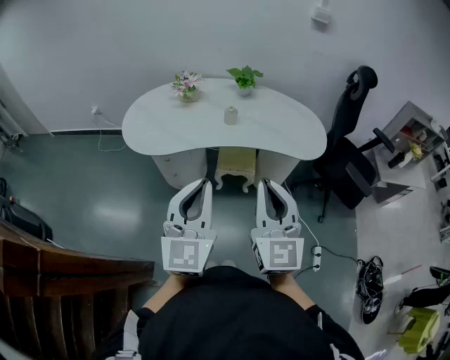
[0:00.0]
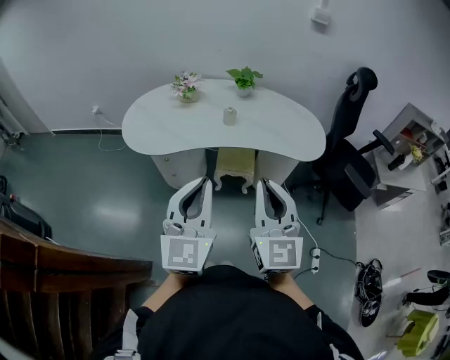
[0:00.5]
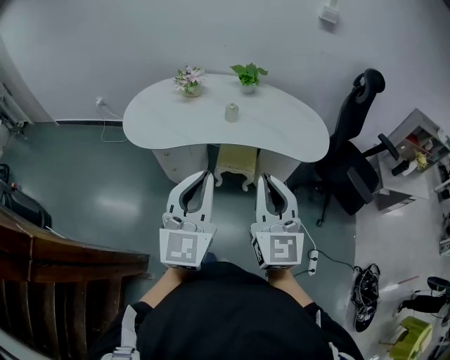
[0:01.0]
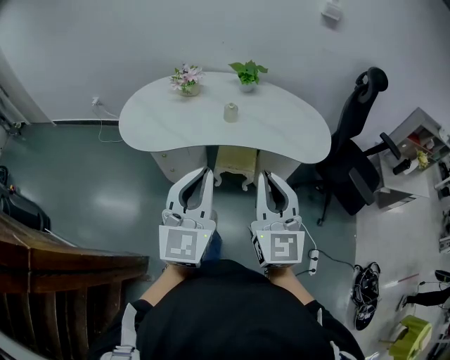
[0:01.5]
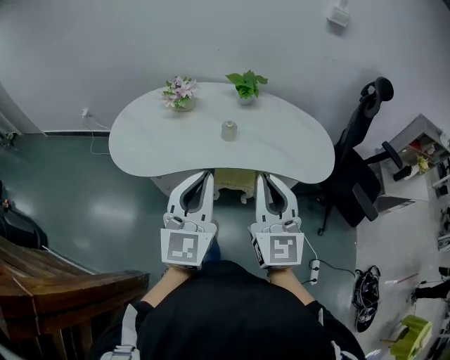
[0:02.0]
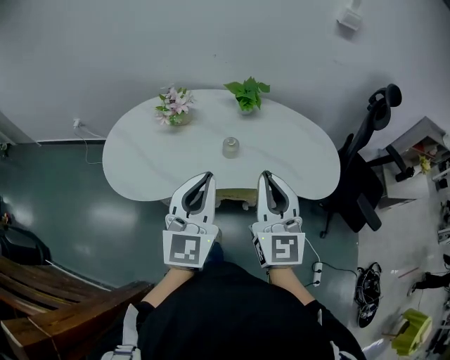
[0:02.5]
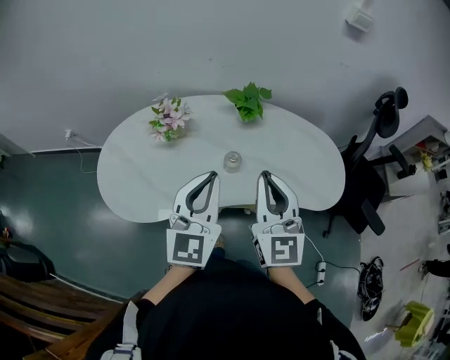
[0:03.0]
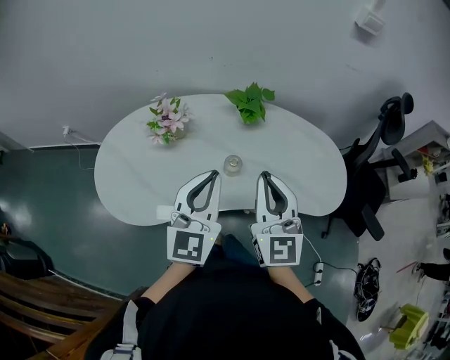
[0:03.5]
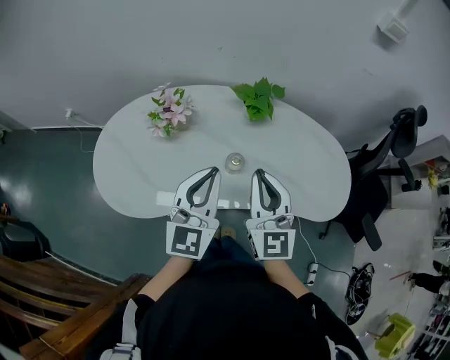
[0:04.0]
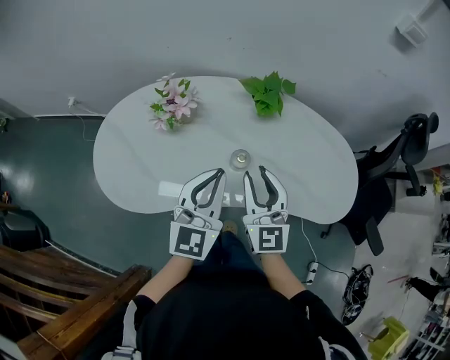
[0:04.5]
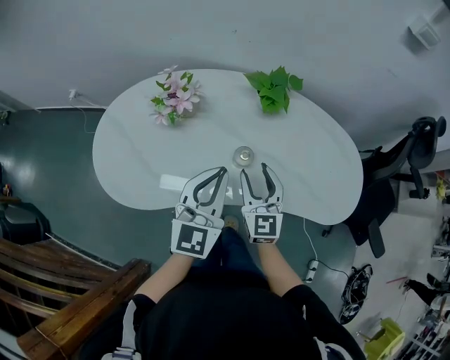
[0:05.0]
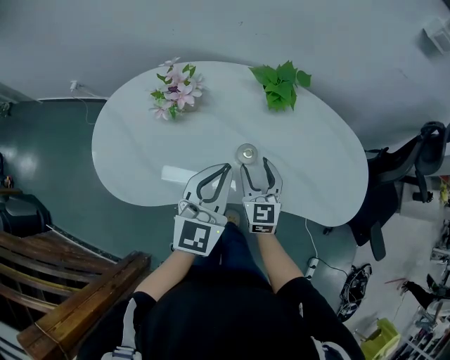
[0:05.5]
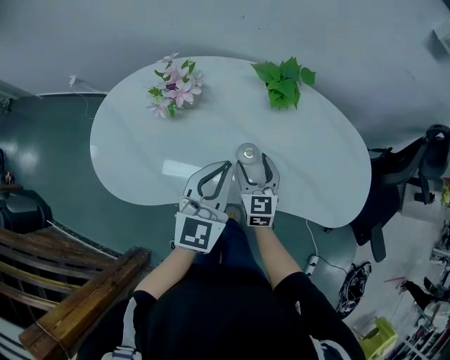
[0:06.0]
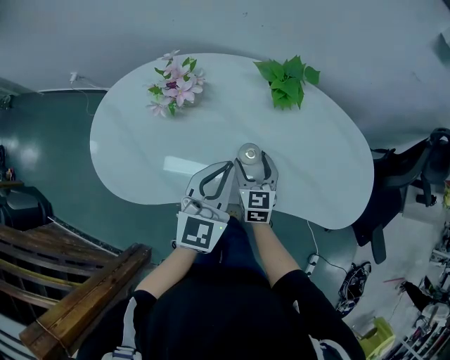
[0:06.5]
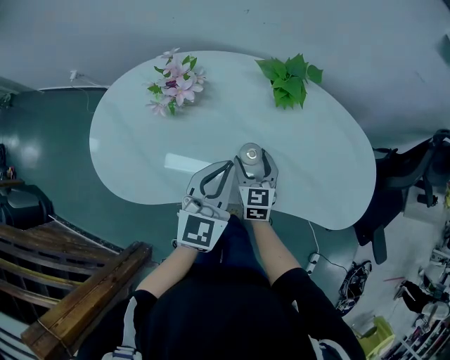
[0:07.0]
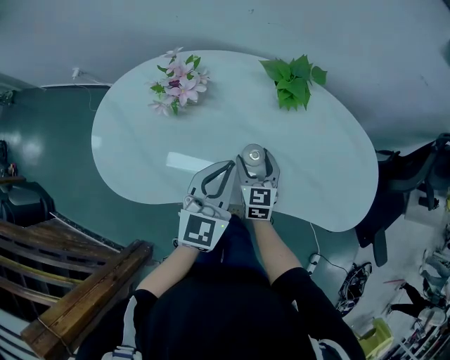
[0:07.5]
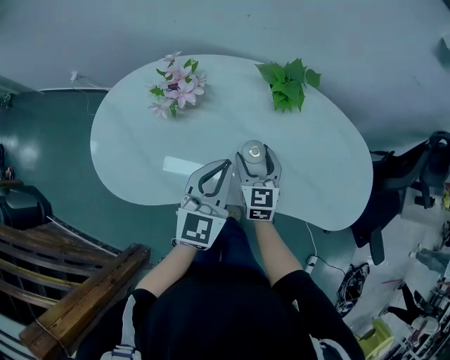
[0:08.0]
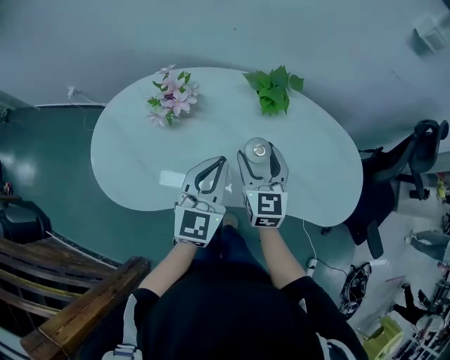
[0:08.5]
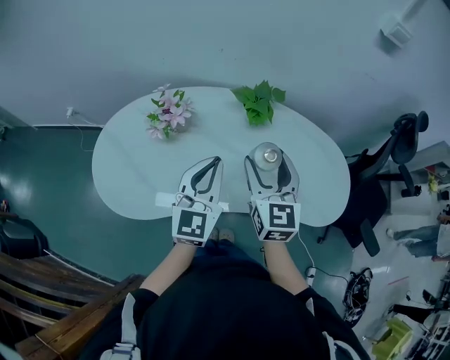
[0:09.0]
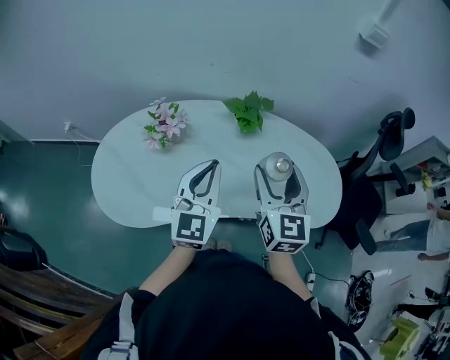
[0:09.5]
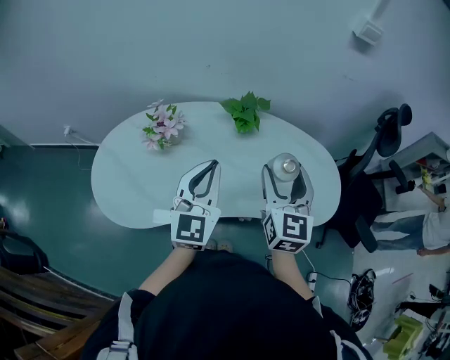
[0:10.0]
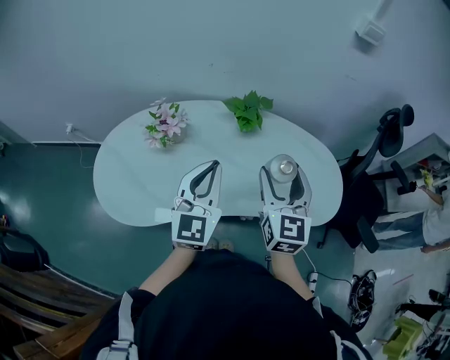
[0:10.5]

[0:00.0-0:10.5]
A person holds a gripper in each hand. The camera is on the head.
0:00.0 to 0:02.0: Both grippers travel together forward, roughly 15 cm.
0:02.0 to 0:04.0: The grippers both shift forward by approximately 25 cm.
0:04.0 to 0:06.5: The right gripper is displaced downward by approximately 25 cm, rotates roughly 30 degrees, and opens; the left gripper goes about 10 cm downward.
0:06.5 to 0:08.5: The right gripper moves upward, about 15 cm.
0:08.5 to 0:10.5: The right gripper moves upward, to the right and backward, about 20 cm; the left gripper goes roughly 10 cm upward.

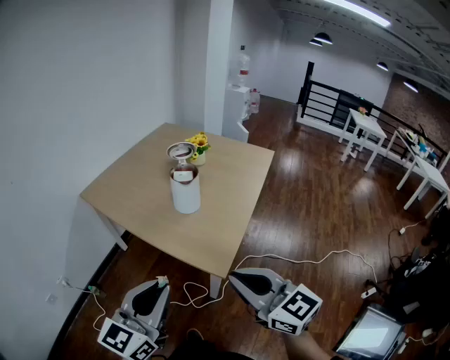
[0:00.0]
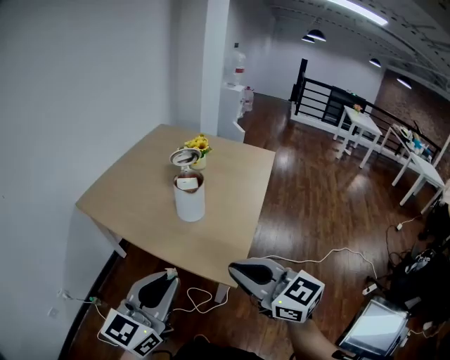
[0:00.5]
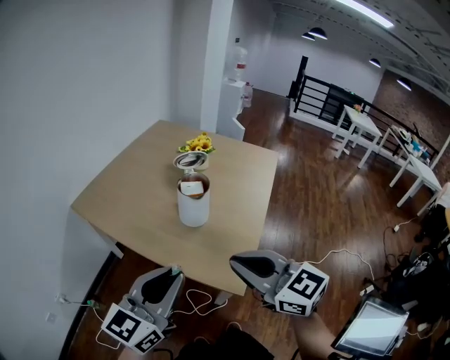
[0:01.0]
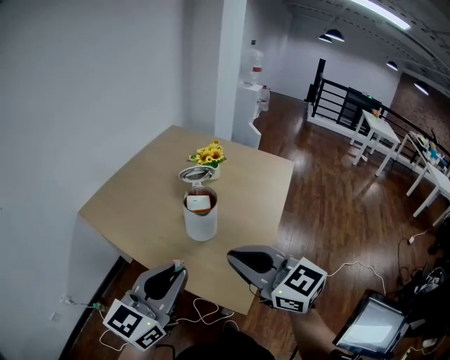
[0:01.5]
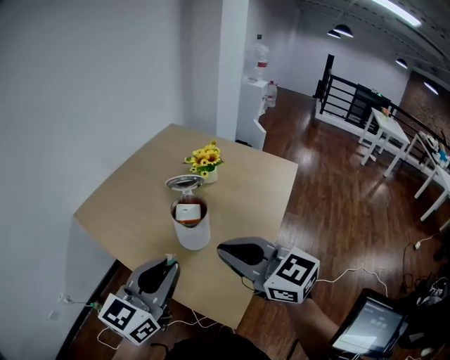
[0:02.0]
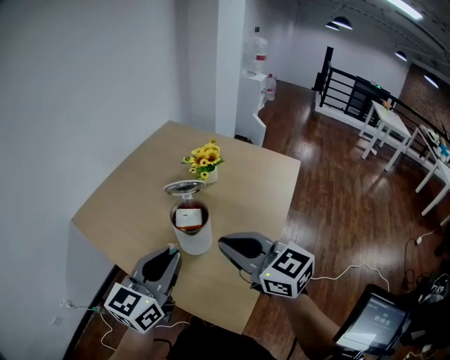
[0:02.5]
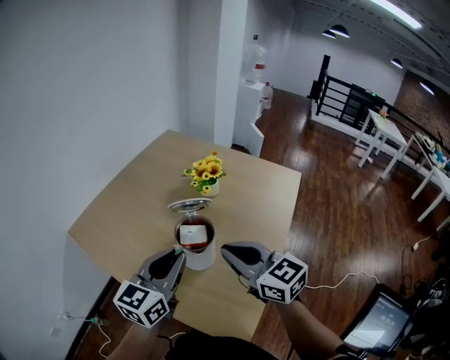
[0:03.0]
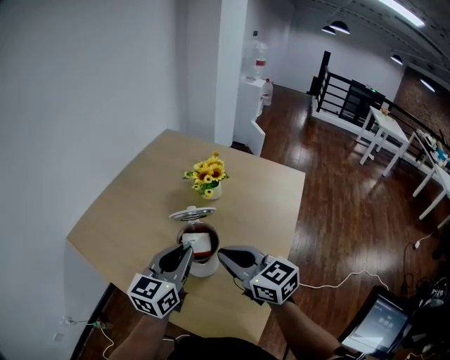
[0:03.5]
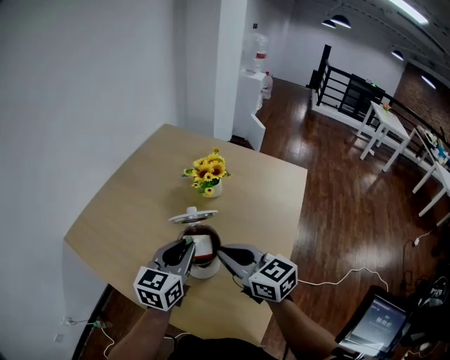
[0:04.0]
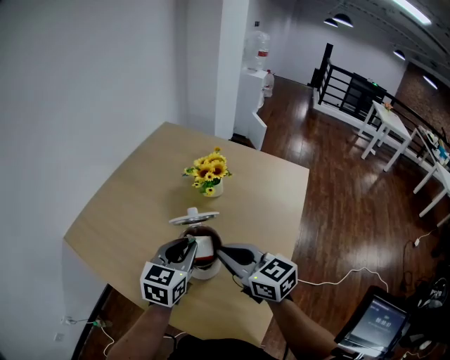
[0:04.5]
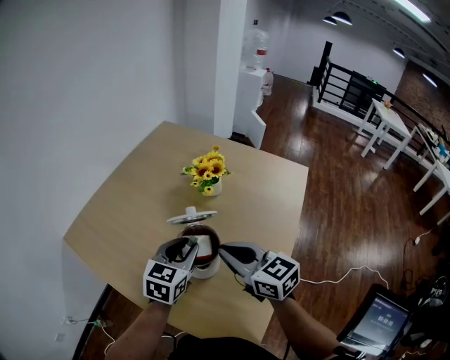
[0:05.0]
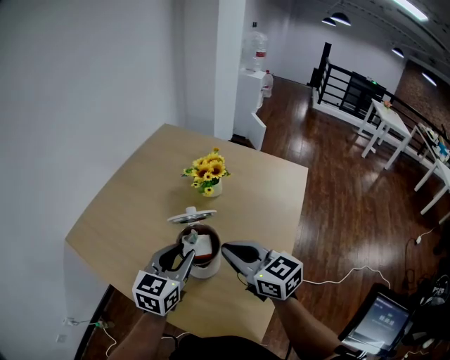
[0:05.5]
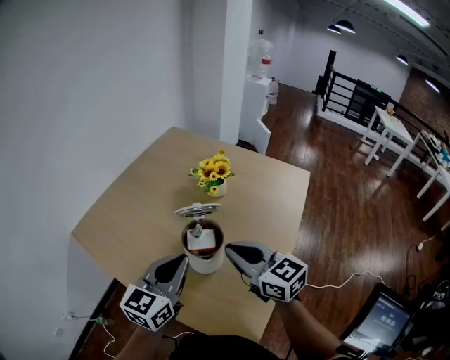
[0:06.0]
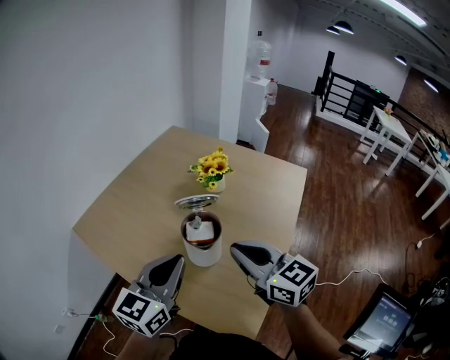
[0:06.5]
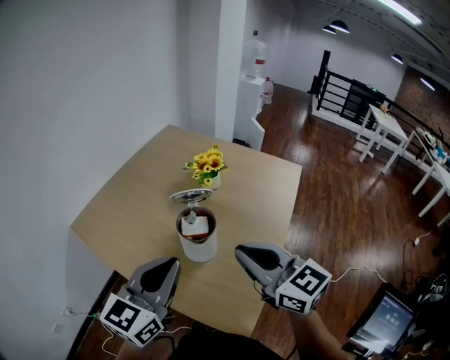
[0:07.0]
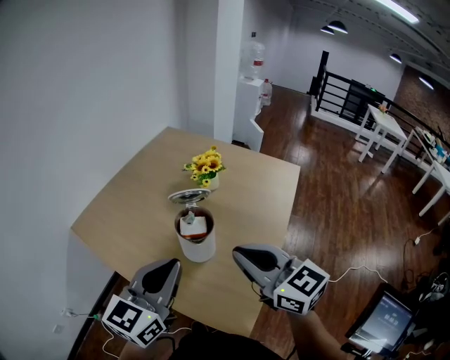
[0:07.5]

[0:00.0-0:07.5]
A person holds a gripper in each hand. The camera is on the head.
0:00.0 to 0:02.0: The two grippers go approximately 30 cm forward.
0:02.0 to 0:04.0: The two grippers go some 25 cm forward and downward.
0:04.0 to 0:05.5: The grippers make only small movements.
0:05.5 to 0:07.5: Both grippers move backward and upward, some 20 cm. The left gripper closes its fingers.

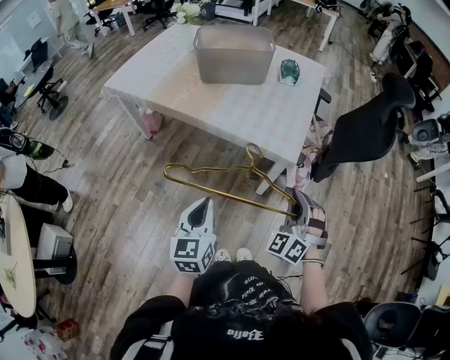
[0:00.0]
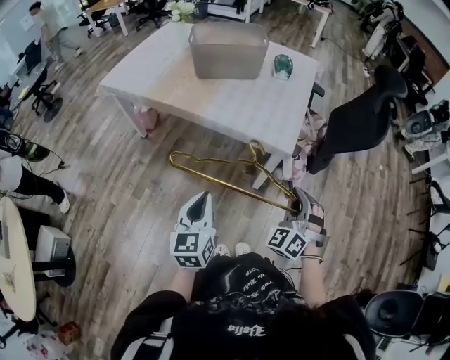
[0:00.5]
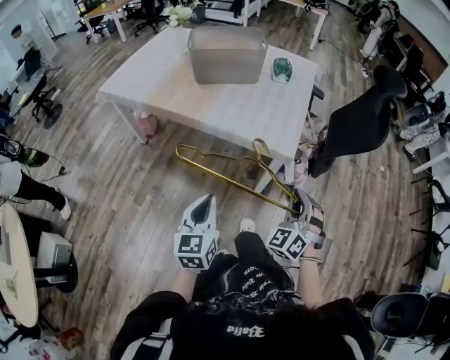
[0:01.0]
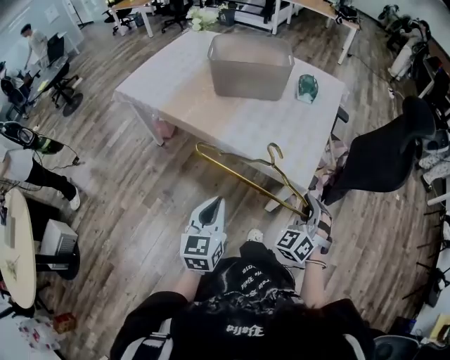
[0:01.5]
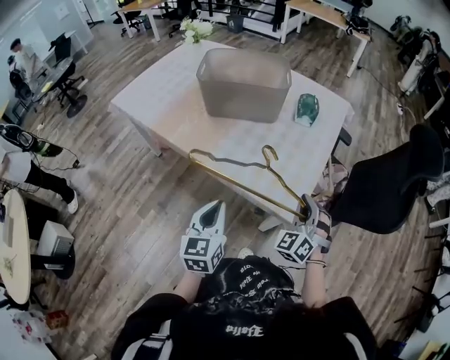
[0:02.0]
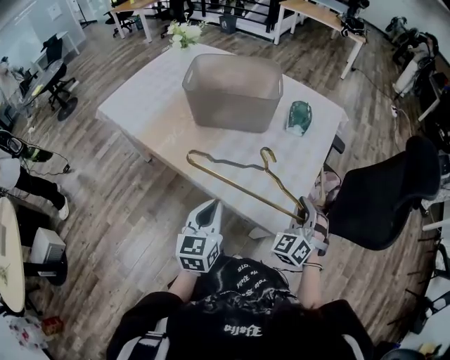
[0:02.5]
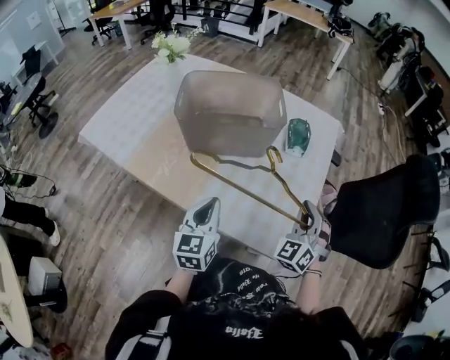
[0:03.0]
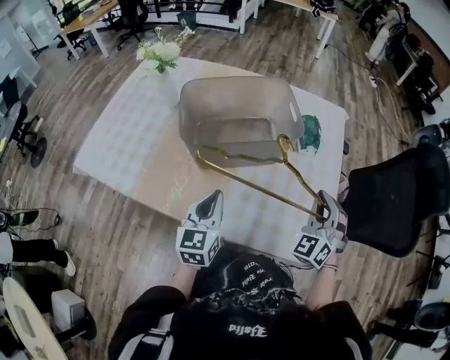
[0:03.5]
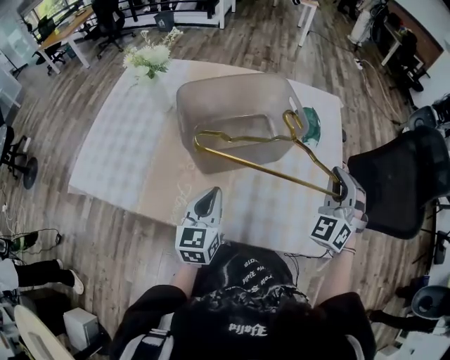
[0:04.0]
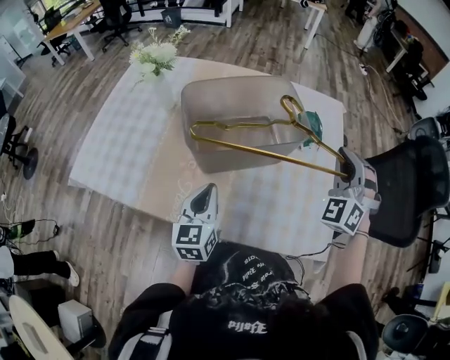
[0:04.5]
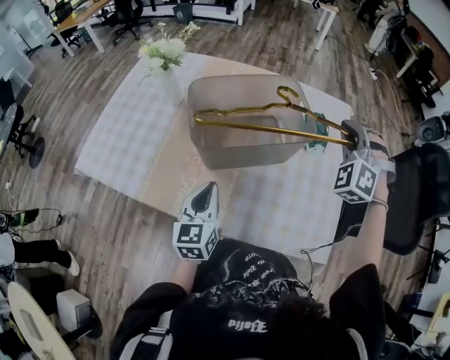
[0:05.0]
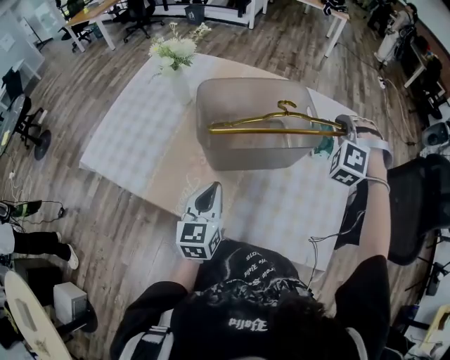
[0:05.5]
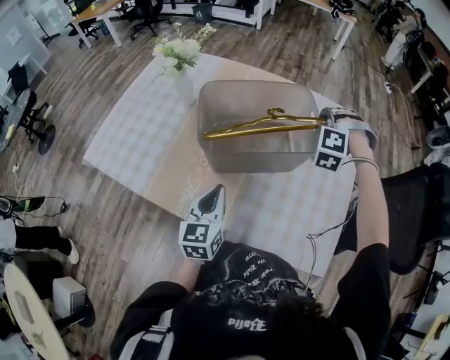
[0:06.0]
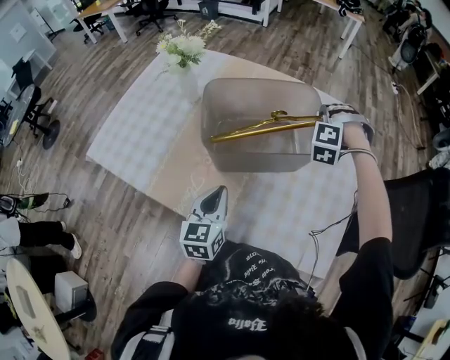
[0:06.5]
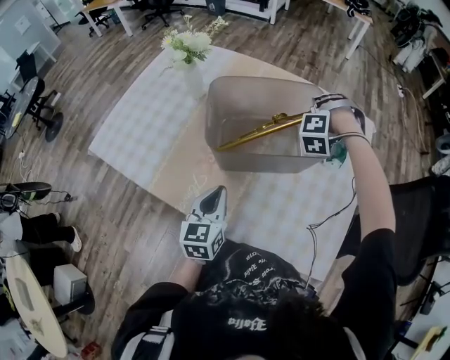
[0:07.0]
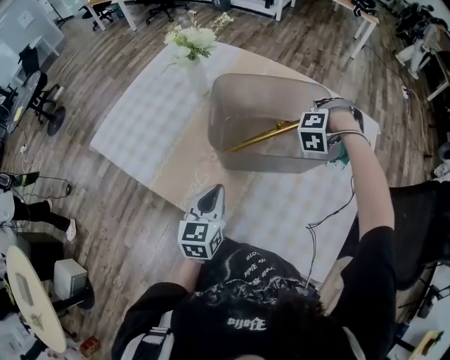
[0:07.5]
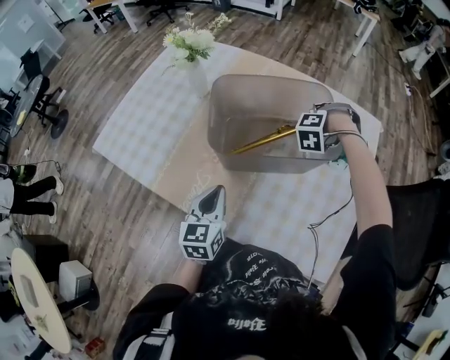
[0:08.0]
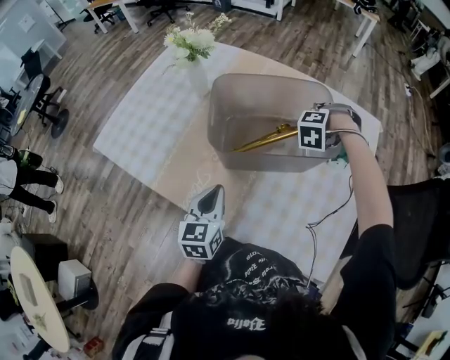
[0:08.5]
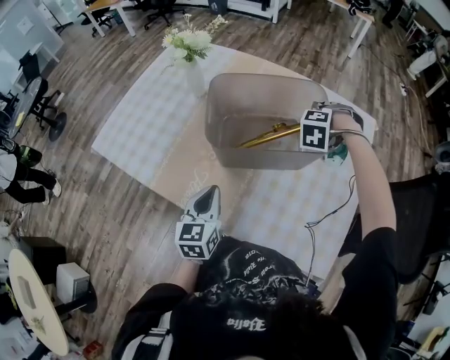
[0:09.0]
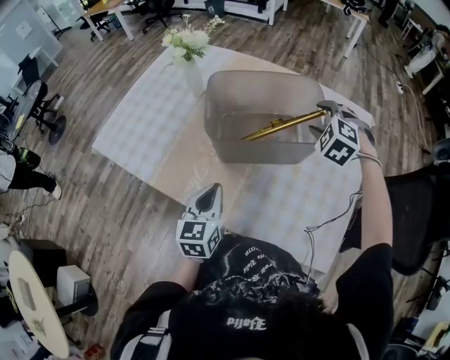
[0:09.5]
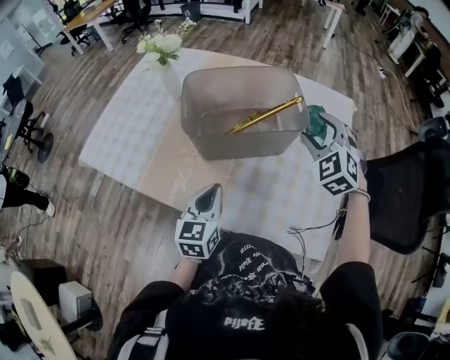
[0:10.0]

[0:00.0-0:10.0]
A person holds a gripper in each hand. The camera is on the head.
0:00.0 to 0:02.0: The two grippers go approximately 30 cm forward.
0:02.0 to 0:04.0: Both grippers move forward and to the left, about 40 cm. The left gripper swivels approximately 20 degrees.
0:04.0 to 0:06.0: The right gripper travels forward and to the left by about 20 cm, and rotates around the line of its fingers by approximately 40 degrees, counterclockwise from behind.
0:06.0 to 0:08.0: The right gripper heads downward, covering some 10 cm, and changes its angle by approximately 30 degrees.
0:08.0 to 0:10.0: The left gripper moves to the right, roughly 10 cm; the right gripper moves backward, upward and to the right, about 20 cm, rotates approximately 60 degrees, and opens.
